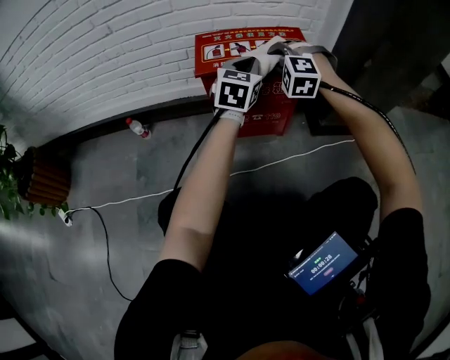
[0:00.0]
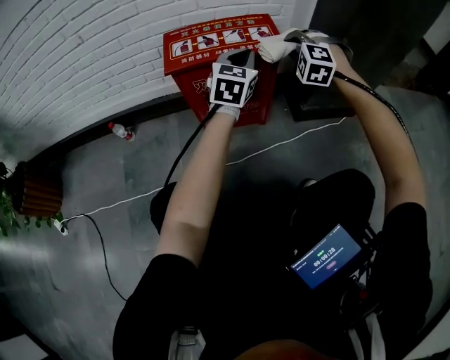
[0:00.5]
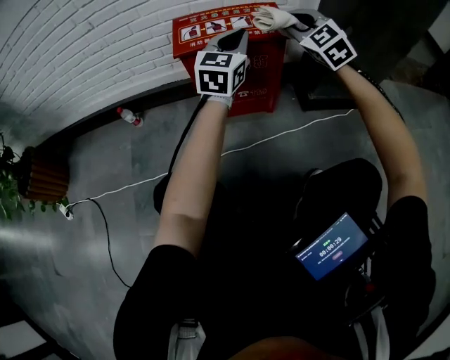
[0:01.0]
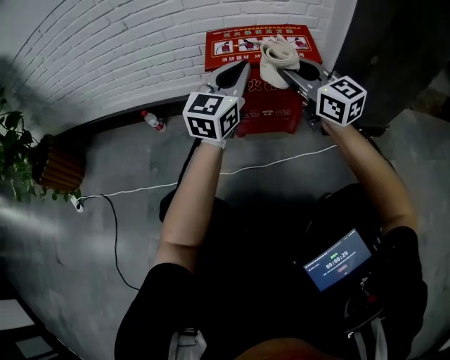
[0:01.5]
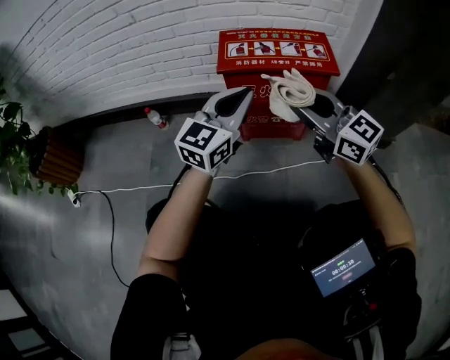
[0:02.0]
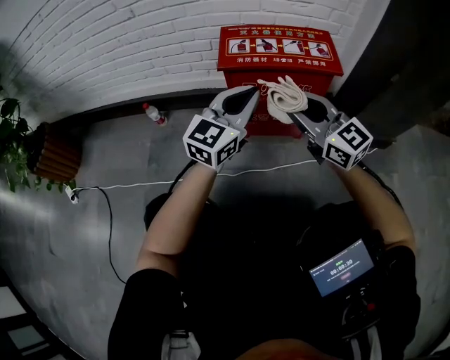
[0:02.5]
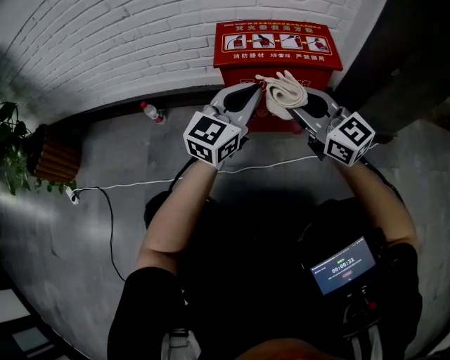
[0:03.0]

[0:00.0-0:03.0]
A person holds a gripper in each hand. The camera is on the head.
0:00.0 to 0:01.5: Both grippers travel together backward and upward, roughly 15 cm. The right gripper goes to the right and returns, about 15 cm each way, and twists some 70 degrees clockwise, seen from behind; the left gripper travels to the right and back again, some 10 cm each way.
0:01.5 to 0:03.0: Both grippers move downward, some 5 cm.

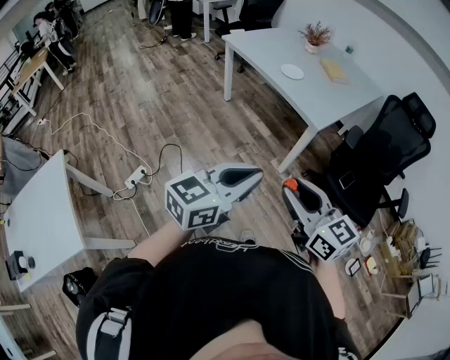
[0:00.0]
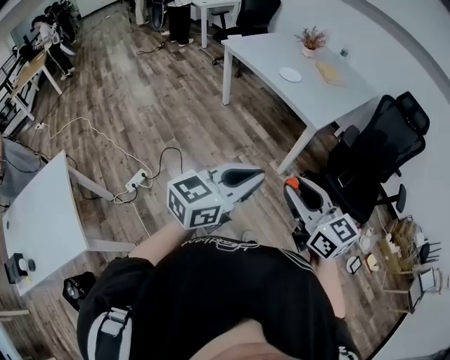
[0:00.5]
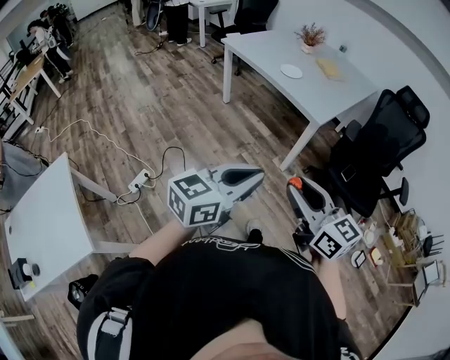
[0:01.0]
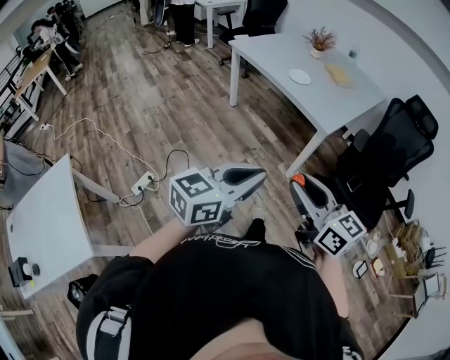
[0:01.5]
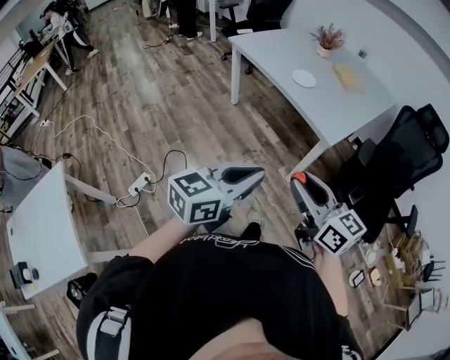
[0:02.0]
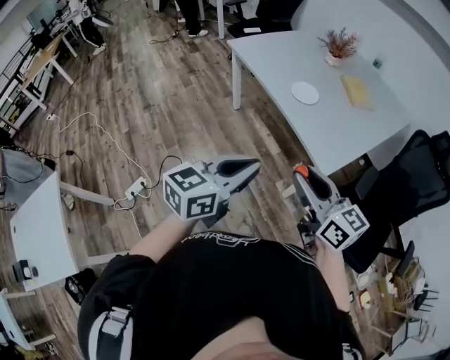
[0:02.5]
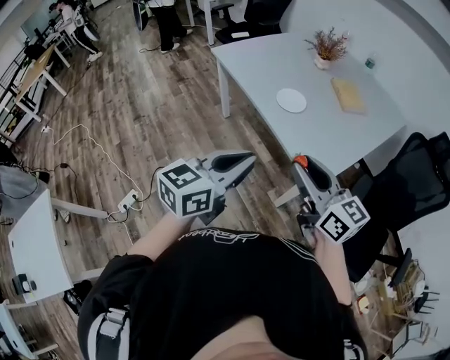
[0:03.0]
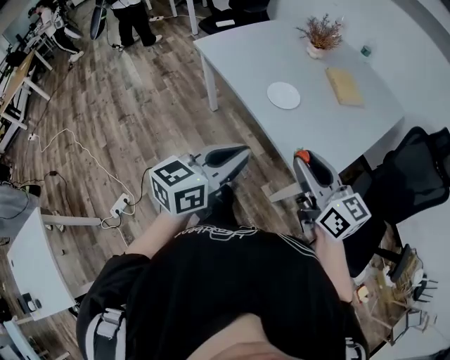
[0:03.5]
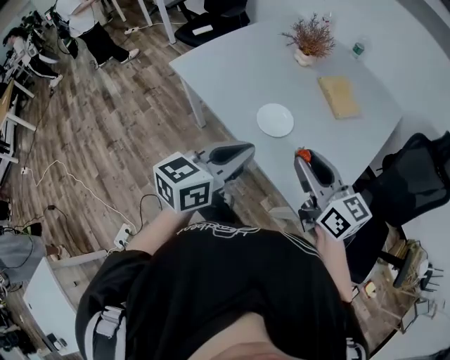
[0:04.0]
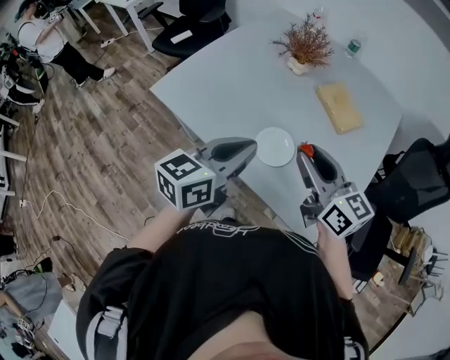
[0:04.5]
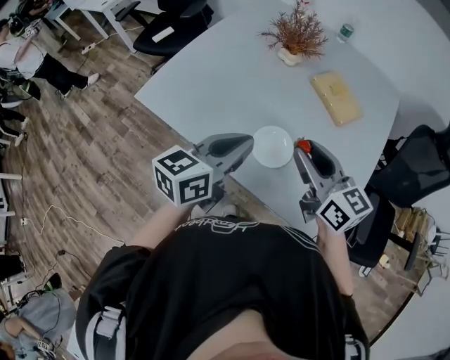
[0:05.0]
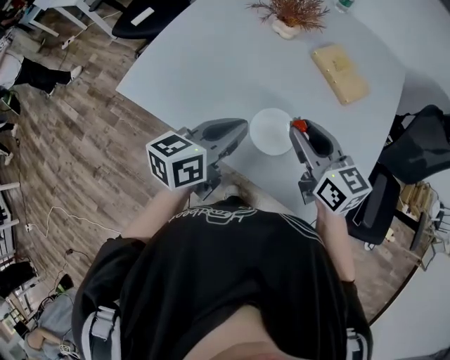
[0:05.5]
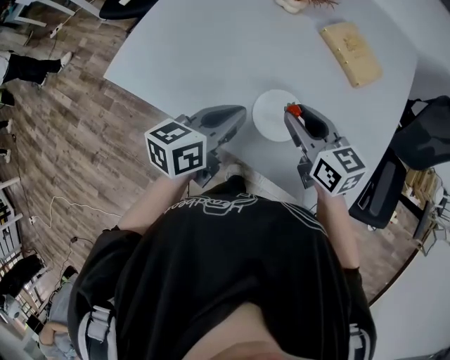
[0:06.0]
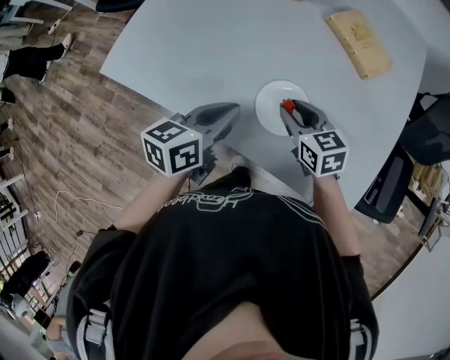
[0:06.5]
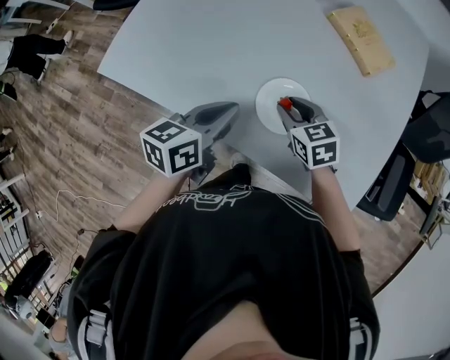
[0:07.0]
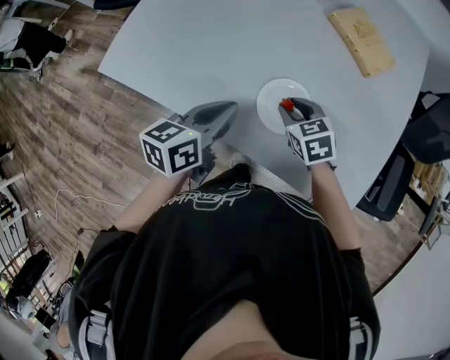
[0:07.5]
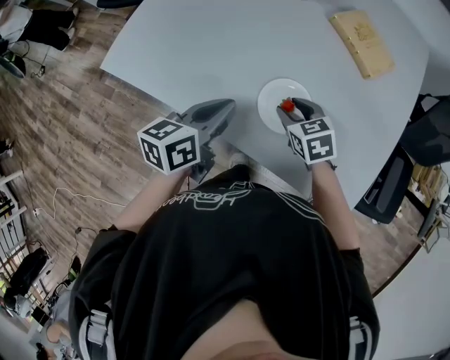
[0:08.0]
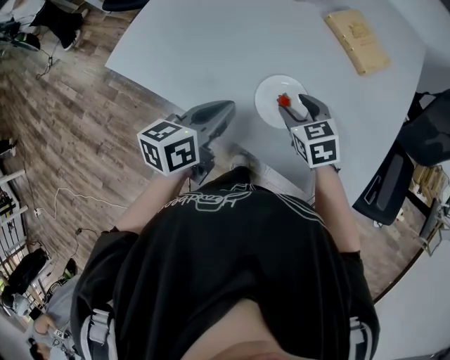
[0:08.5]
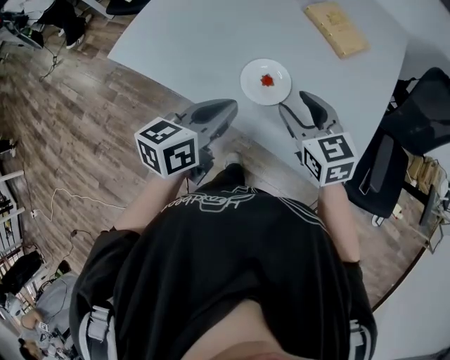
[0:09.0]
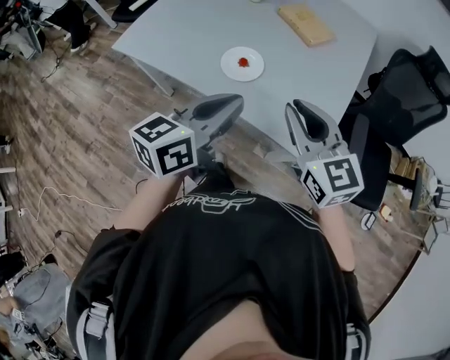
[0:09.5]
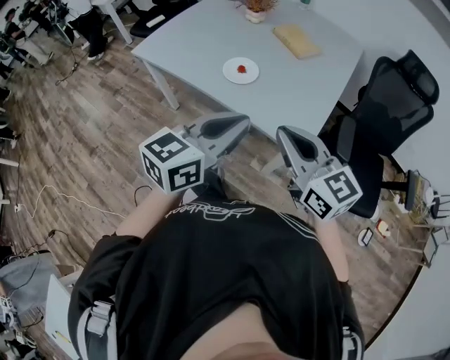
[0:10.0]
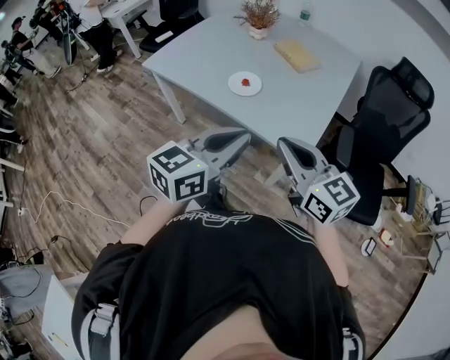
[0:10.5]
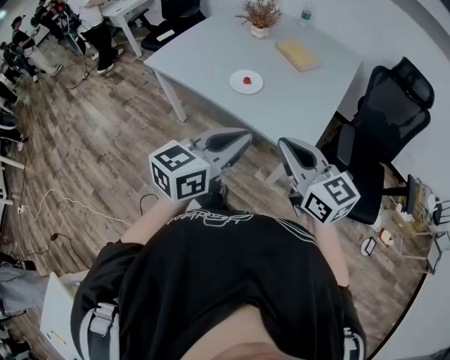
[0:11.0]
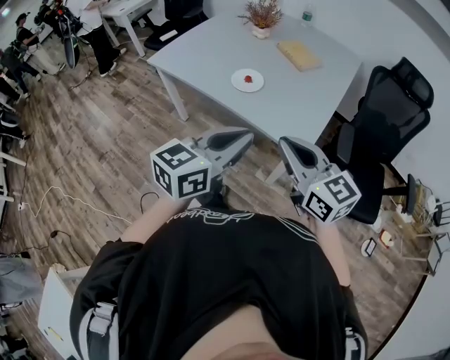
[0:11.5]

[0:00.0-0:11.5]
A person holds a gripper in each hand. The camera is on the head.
0:00.0 to 0:02.0: Both grippers move forward, about 10 cm.
0:02.0 to 0:04.0: The pair of grippers is taken forward, about 50 cm.
0:04.0 to 0:06.0: The grippers both shift forward and downward by roughly 25 cm. The right gripper swivels some 20 degrees; the left gripper turns by about 20 degrees.
0:06.0 to 0:07.5: The right gripper shifts roughly 15 cm downward, and changes its angle by about 30 degrees.
0:07.5 to 0:09.5: The right gripper travels upward, backward and to the right by about 35 cm, and tilts its fingers about 40 degrees upward. Meanwhile the left gripper travels backward, upward and to the right by about 30 cm, and changes its angle by roughly 20 degrees.
0:09.5 to 0:11.5: Both grippers move backward, some 20 cm.

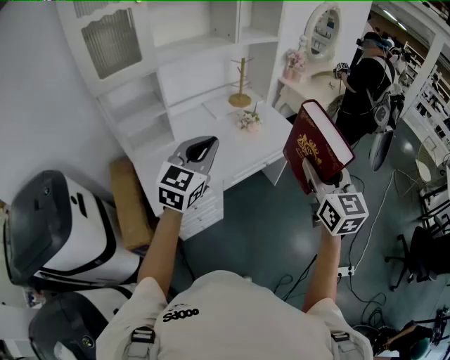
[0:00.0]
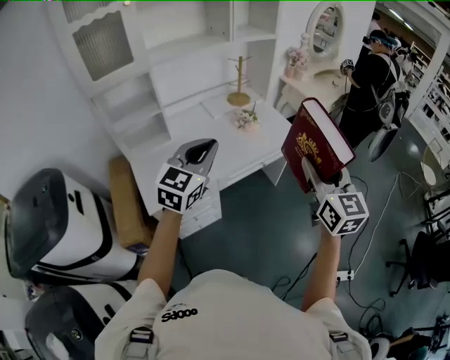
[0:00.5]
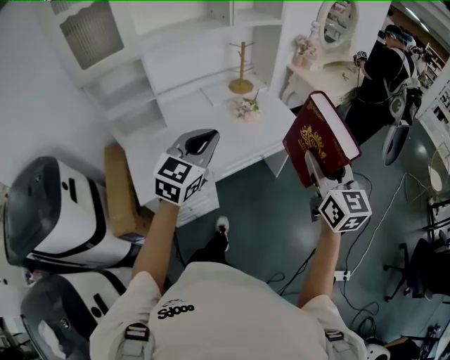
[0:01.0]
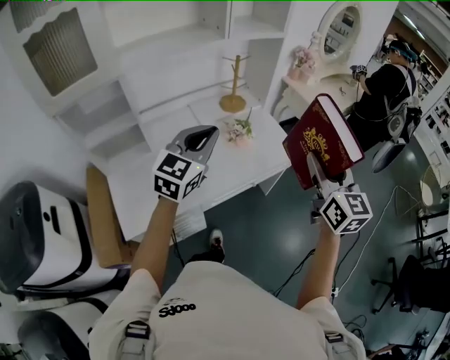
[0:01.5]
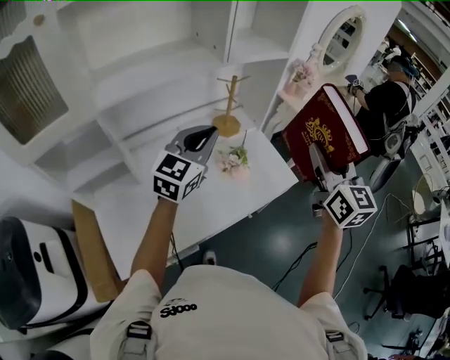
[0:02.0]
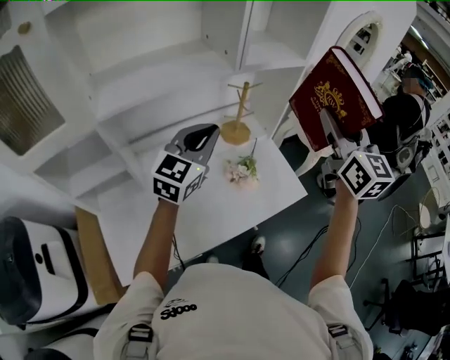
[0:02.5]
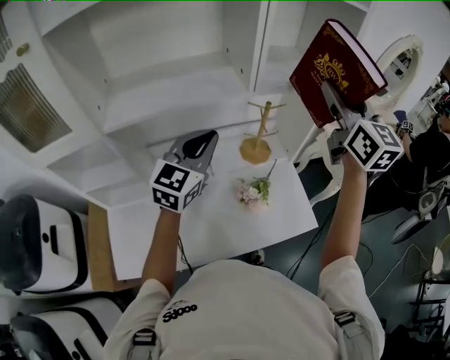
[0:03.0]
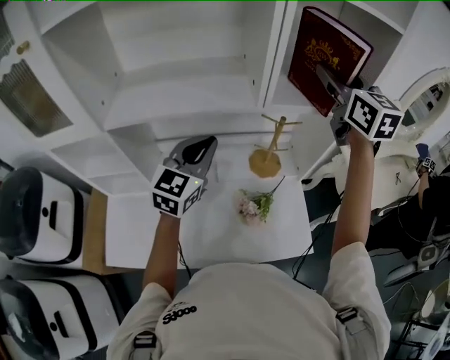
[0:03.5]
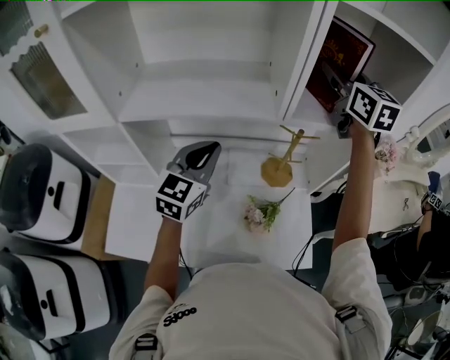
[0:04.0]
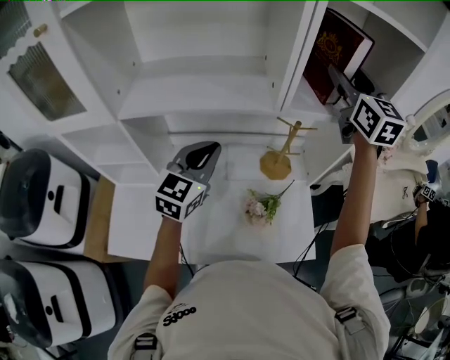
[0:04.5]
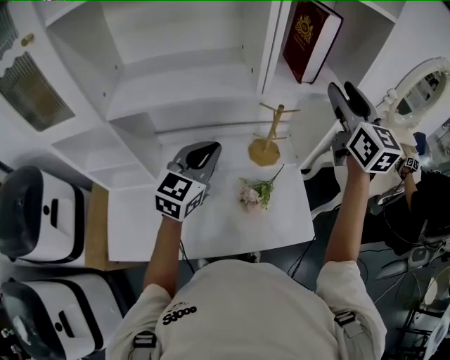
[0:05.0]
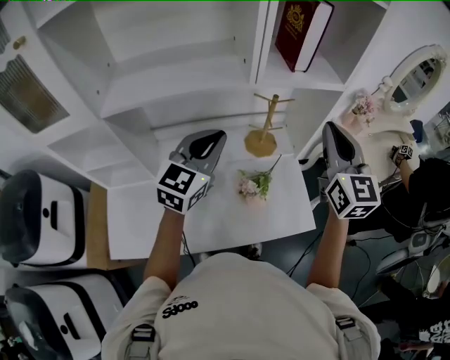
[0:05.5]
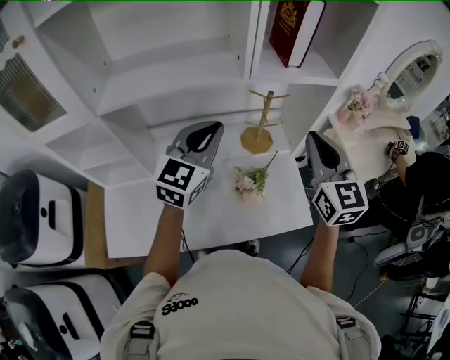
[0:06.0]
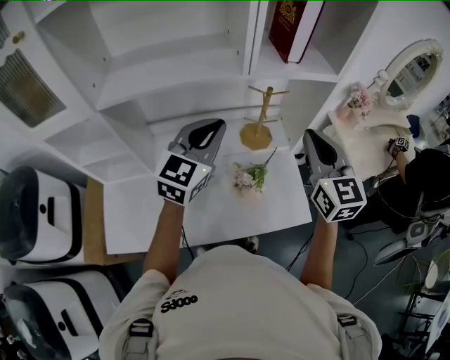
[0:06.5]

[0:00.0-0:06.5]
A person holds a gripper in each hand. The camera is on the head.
0:00.0 to 0:02.0: Both grippers travel together forward, about 40 cm.
0:02.0 to 0:04.5: The right gripper ends up approximately 40 cm from where it was, and turns by some 30 degrees, while the left gripper shifts by some 15 cm, and swivels about 30 degrees.
0:04.5 to 0:06.5: The left gripper shifts roughly 5 cm to the right. Meanwhile the right gripper goes about 25 cm backward and downward, and closes.

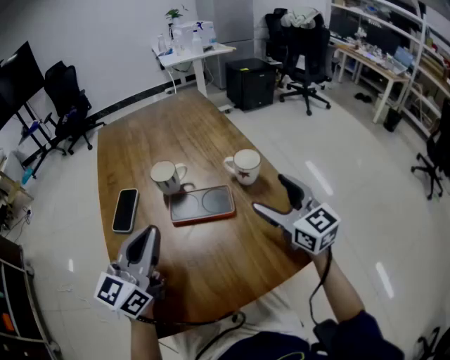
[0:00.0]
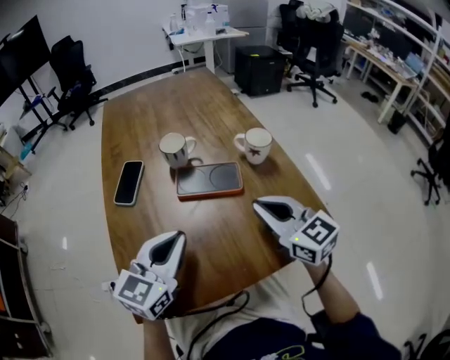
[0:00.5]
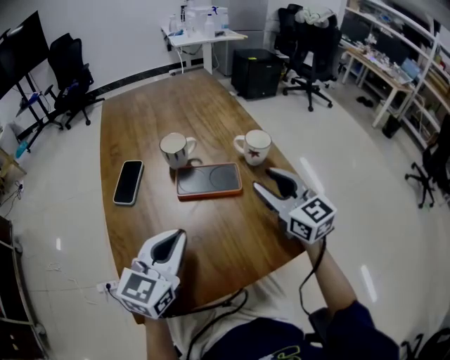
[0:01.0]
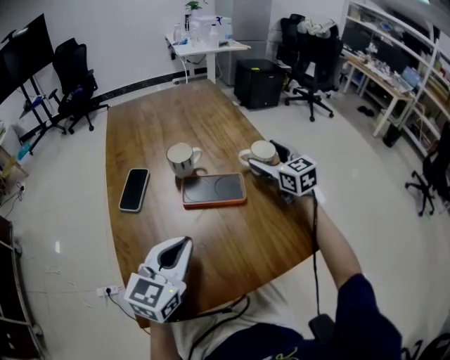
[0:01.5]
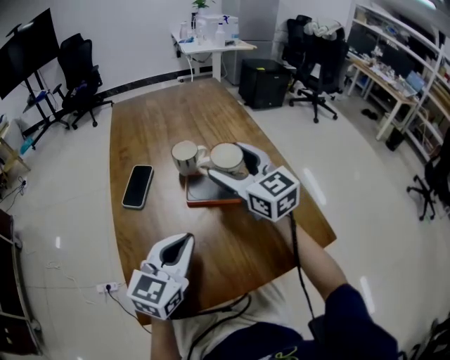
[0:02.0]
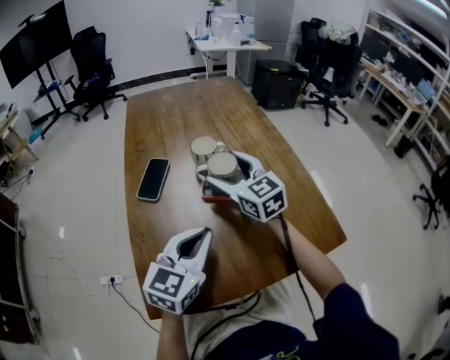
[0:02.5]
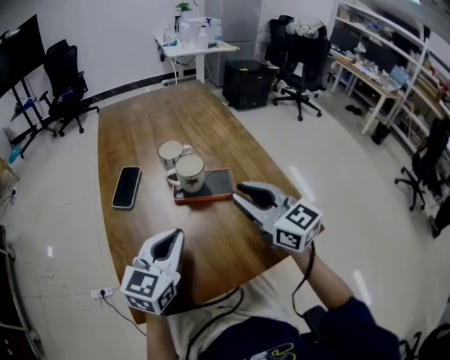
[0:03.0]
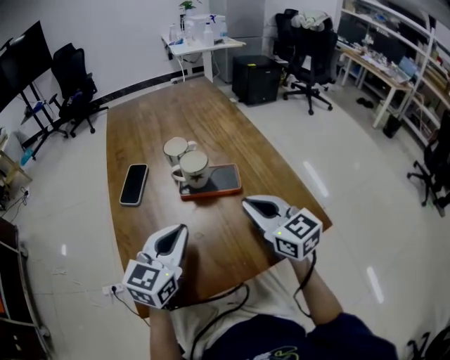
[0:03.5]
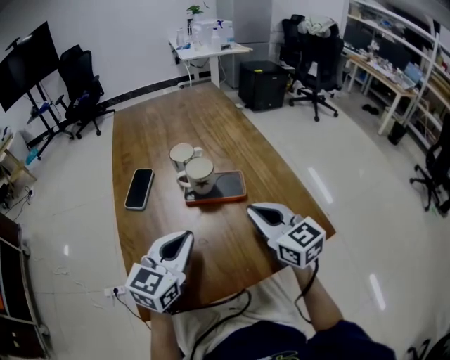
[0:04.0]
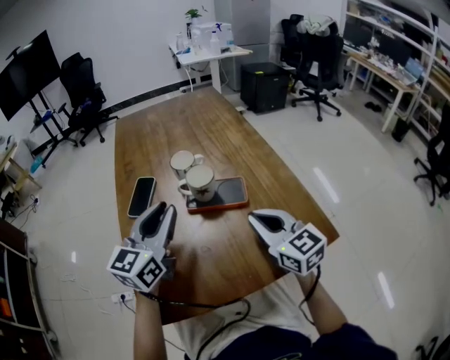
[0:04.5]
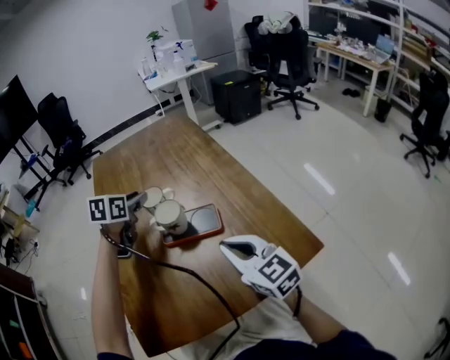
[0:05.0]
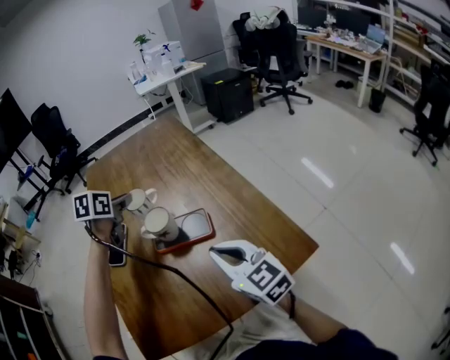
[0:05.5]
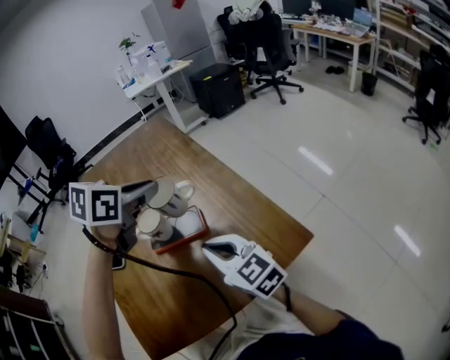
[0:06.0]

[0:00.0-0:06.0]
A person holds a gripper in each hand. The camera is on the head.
0:00.0 to 0:02.0: The right gripper swings forward and backward, about 20 cm each way, with 2 reversals, and closes, then reopens. Meanwhile the left gripper travels downward by roughly 5 cm.
0:02.0 to 0:04.0: The right gripper shifts roughly 15 cm backward, downward and to the right, and closes.
0:04.0 to 0:06.0: The left gripper travels forward, upward and to the right by some 25 cm, swivels some 30 degrees, and opens, then closes once more.
